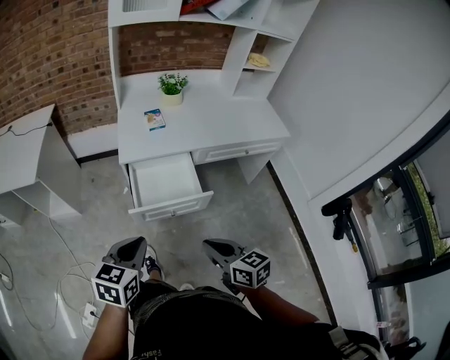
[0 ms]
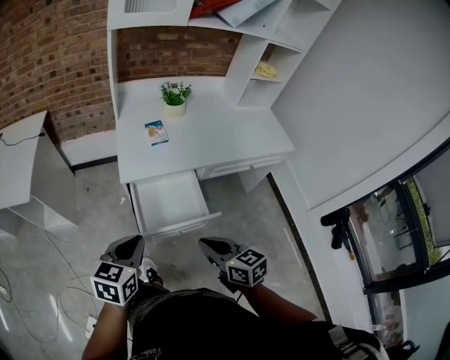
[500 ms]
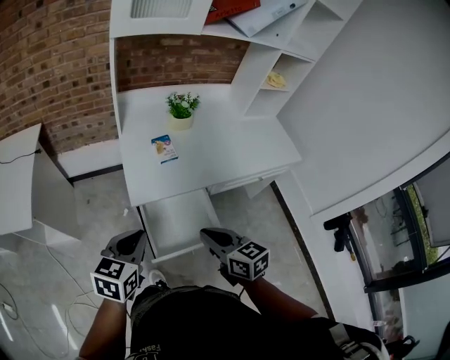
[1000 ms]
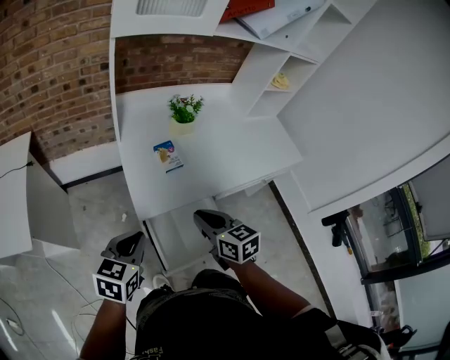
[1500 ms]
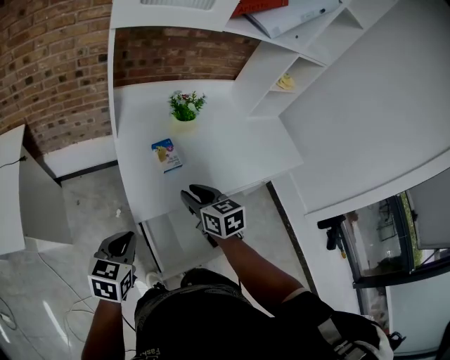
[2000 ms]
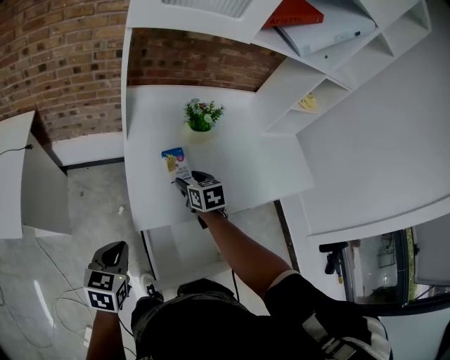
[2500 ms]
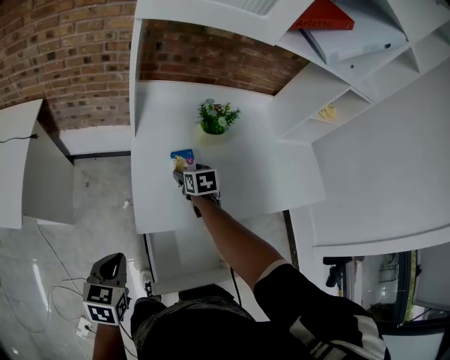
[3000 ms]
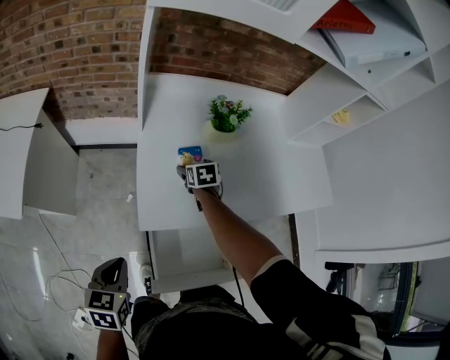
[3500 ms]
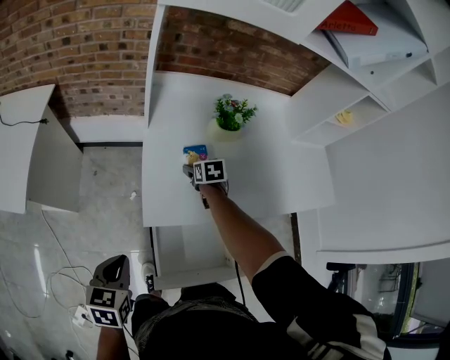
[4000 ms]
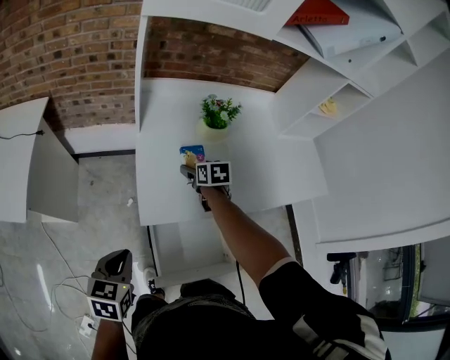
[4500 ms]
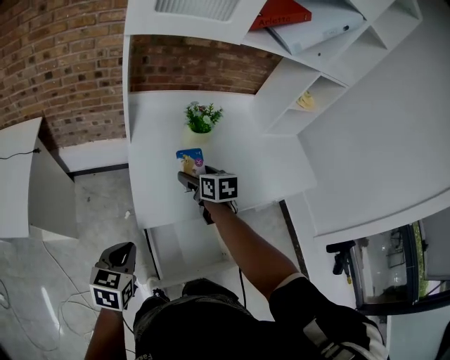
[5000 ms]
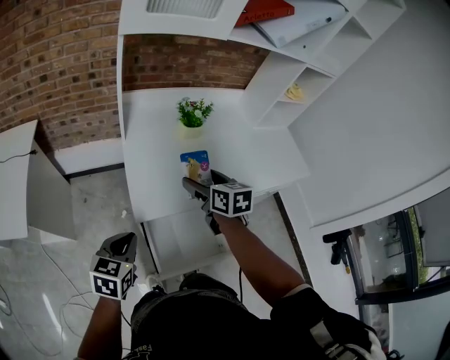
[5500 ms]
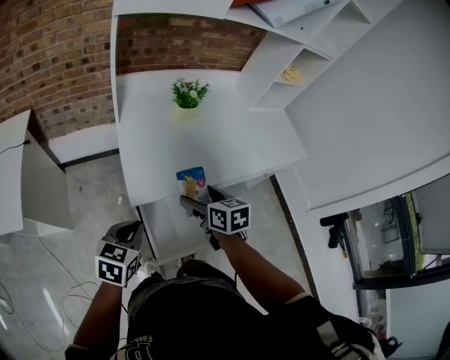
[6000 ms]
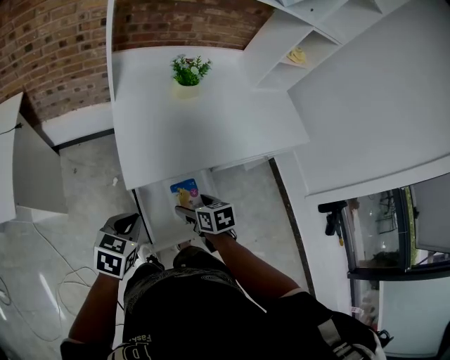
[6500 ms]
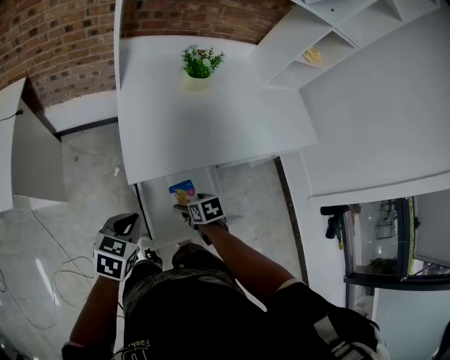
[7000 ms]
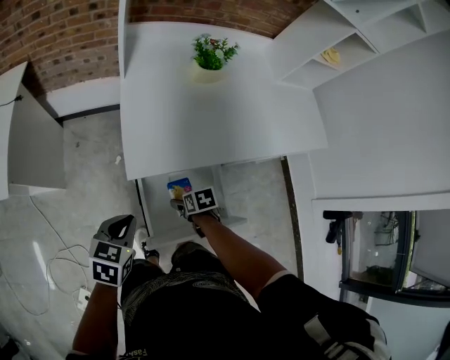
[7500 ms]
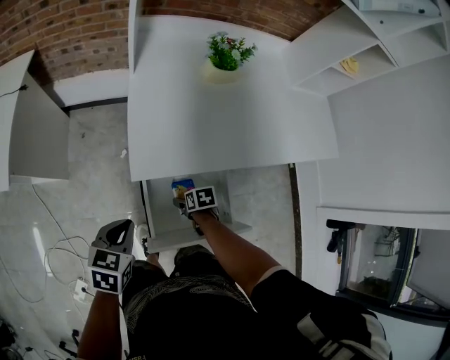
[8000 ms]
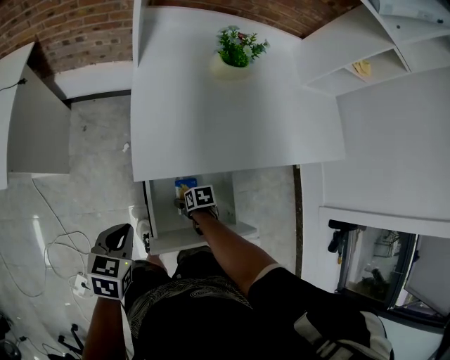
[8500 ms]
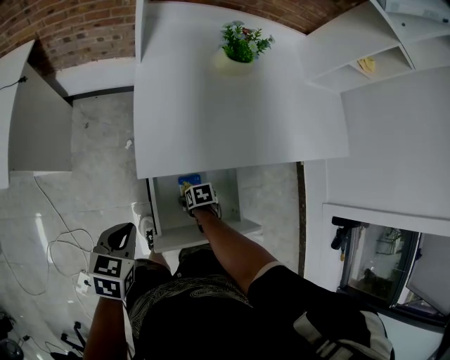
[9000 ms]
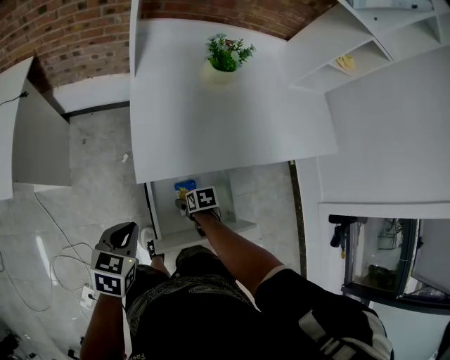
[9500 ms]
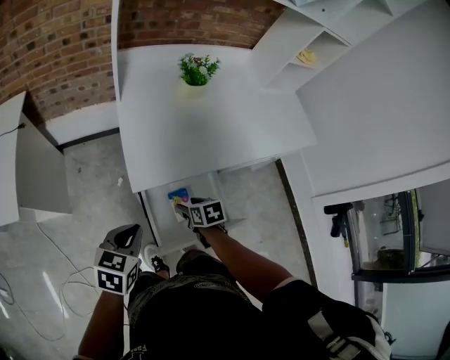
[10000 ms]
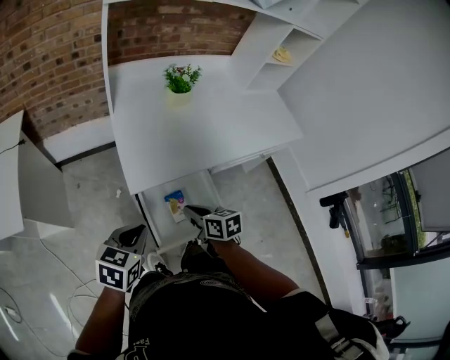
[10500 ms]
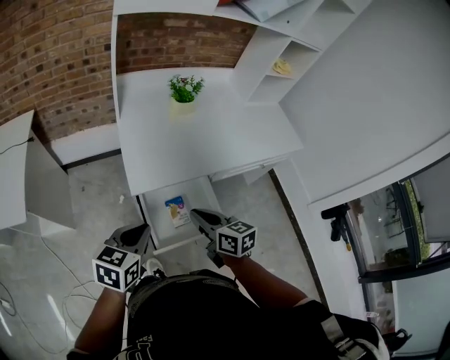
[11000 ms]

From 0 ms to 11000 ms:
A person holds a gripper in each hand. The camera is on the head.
From 0 ms to 2000 ms: The right gripper goes roughly 50 cm forward; the left gripper heads forward and to the left, covering approximately 35 cm.
From 2000 ms to 3500 ms: The left gripper shifts by roughly 5 cm, and changes its angle by roughly 20 degrees; the right gripper travels forward and downward by roughly 30 cm, rotates approximately 20 degrees, and opens up.
From 3500 ms to 5500 ms: The right gripper moves upward and backward, about 25 cm, and rotates about 30 degrees. The left gripper moves some 5 cm, and changes its angle by roughly 20 degrees.
From 5500 ms to 7500 ms: The right gripper moves downward and backward, approximately 35 cm, and angles its fingers downward, by approximately 40 degrees. Meanwhile the left gripper moves downward, approximately 10 cm.
From 7500 ms to 9000 ms: The right gripper shifts some 10 cm downward.
From 9000 ms to 11000 ms: The left gripper moves upward, roughly 15 cm, and turns by roughly 20 degrees. Meanwhile the right gripper goes about 40 cm upward, tips its fingers upward by roughly 50 degrees, and closes its fingers.

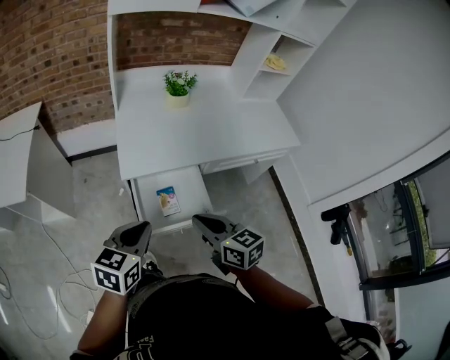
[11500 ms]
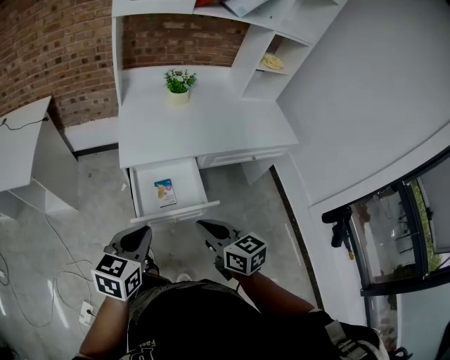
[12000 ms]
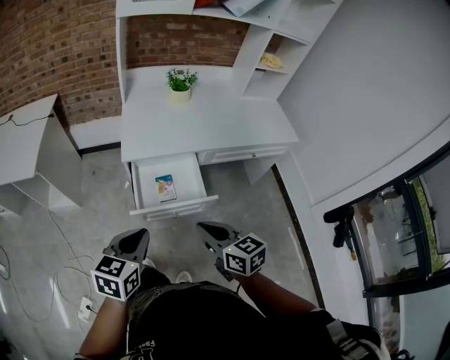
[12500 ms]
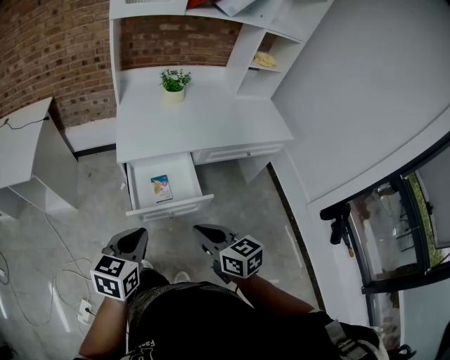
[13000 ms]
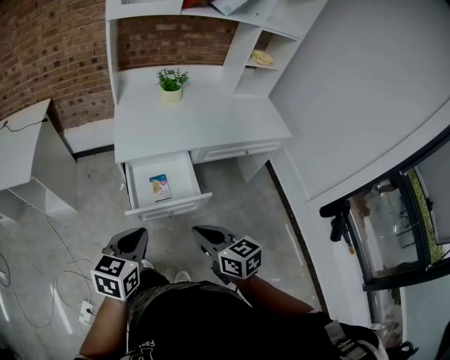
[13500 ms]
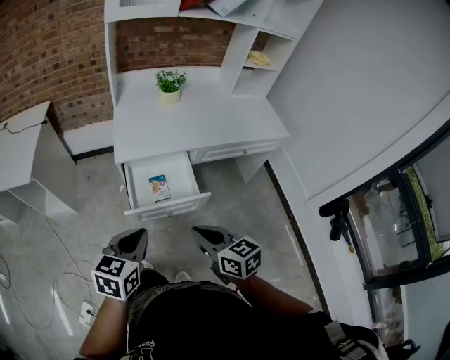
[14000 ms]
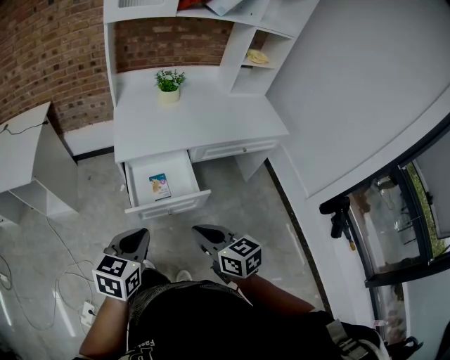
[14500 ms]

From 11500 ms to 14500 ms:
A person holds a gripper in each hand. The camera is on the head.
From 11500 ms to 13000 ms: Both grippers travel together backward, some 15 cm.
From 13000 ms to 14500 ms: There are only small adjustments of the grippers.

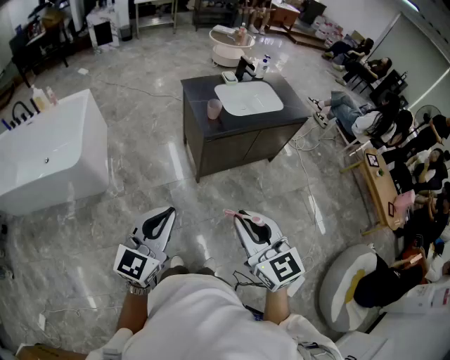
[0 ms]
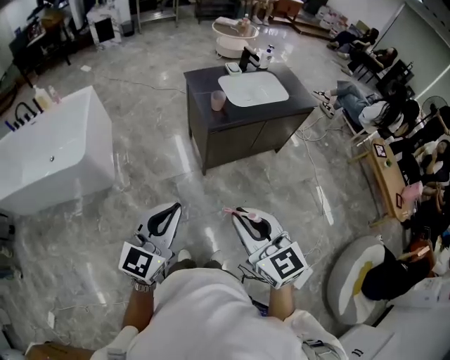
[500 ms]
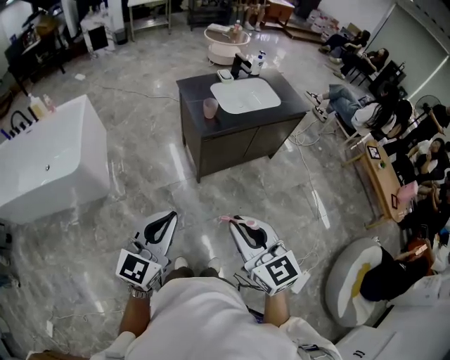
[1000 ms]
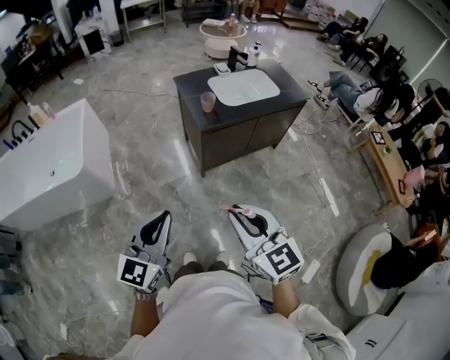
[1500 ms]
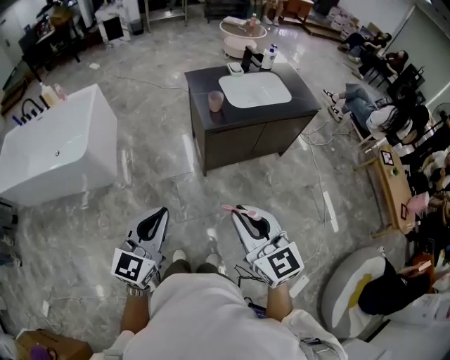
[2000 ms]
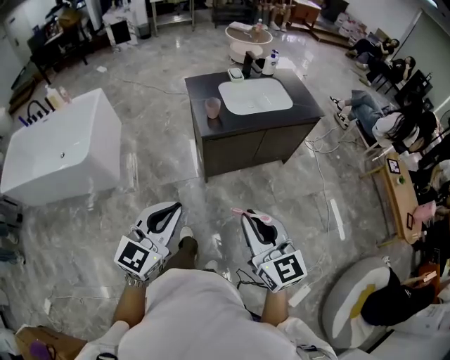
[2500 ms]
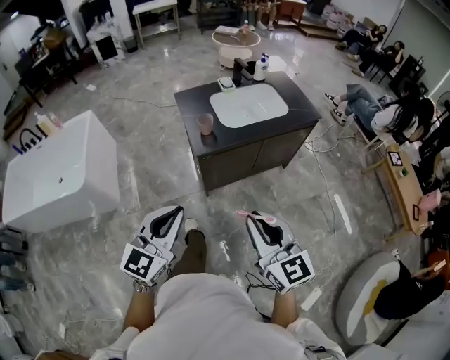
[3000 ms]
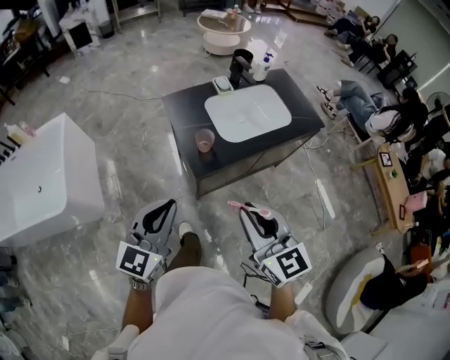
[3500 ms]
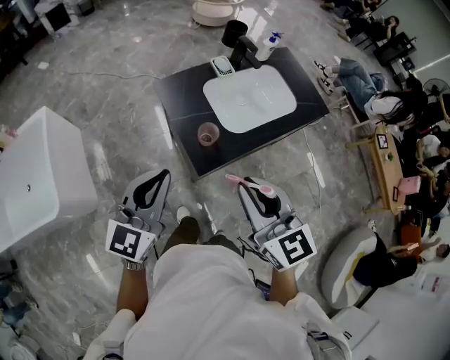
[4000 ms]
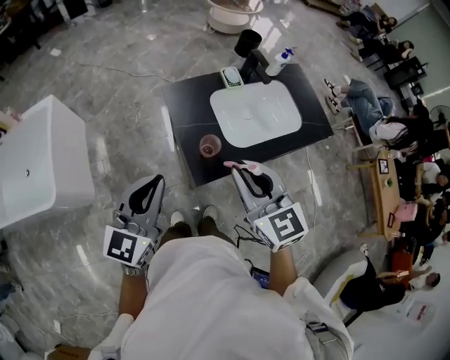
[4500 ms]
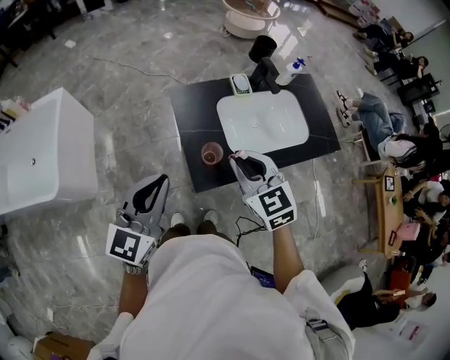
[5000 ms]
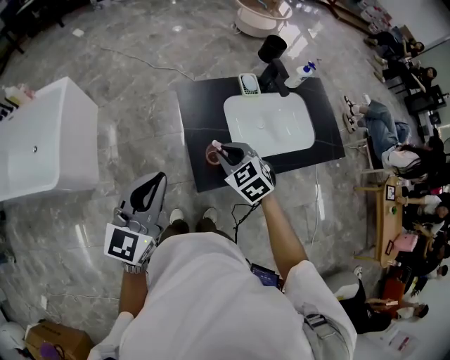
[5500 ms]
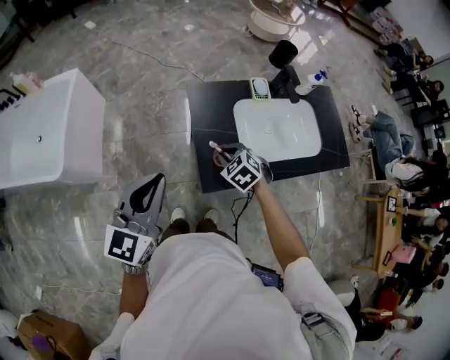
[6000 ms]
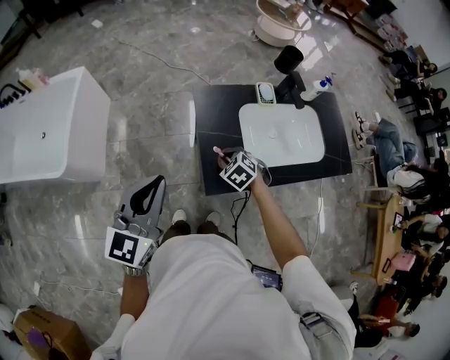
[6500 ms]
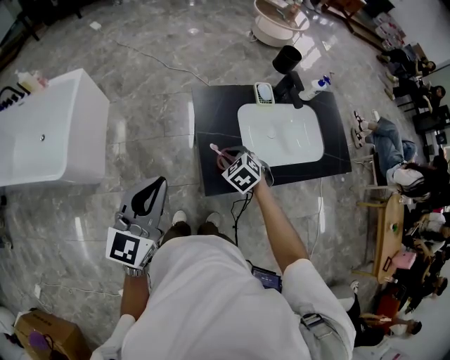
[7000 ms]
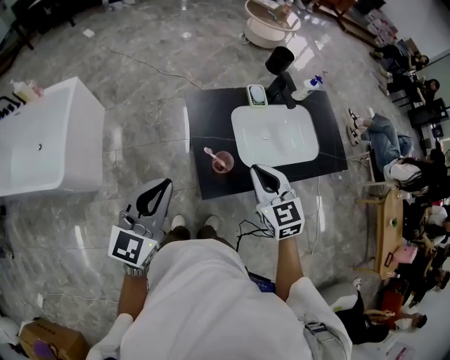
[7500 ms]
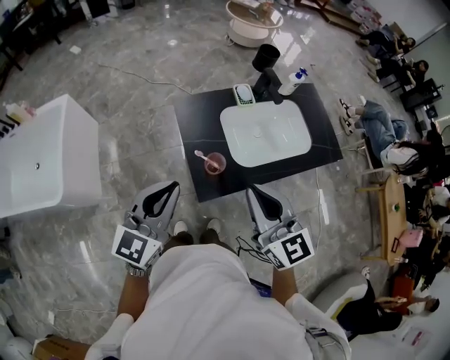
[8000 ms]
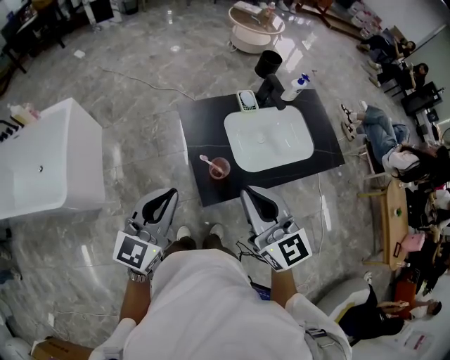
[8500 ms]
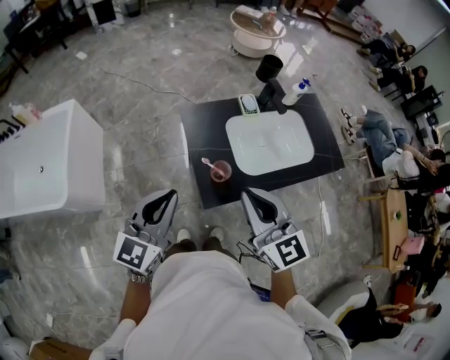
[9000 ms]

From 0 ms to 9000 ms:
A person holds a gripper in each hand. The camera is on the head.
From 0 ms to 2000 ms: The right gripper travels to the right by about 5 cm.
From 2000 ms to 4500 ms: The two grippers travel together, forward, about 50 cm.
From 4500 ms to 7000 ms: The right gripper goes about 30 cm downward and forward, and tilts its fingers approximately 40 degrees downward.
From 7000 ms to 9000 ms: The right gripper is displaced upward and backward by some 30 cm, and points its fingers approximately 50 degrees further upward.

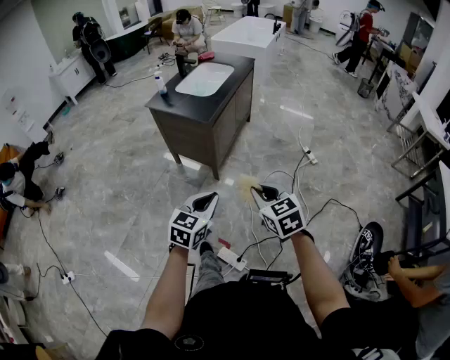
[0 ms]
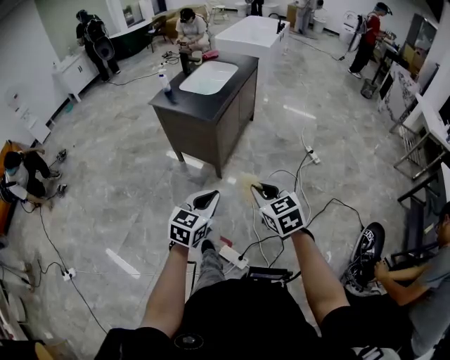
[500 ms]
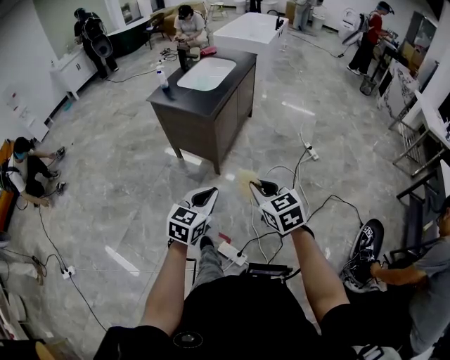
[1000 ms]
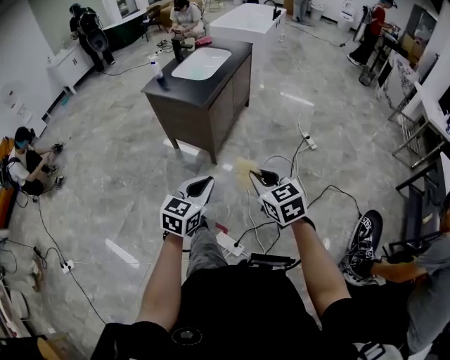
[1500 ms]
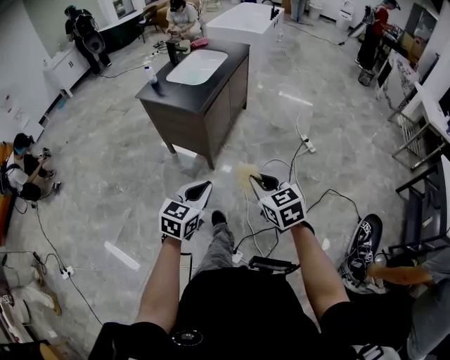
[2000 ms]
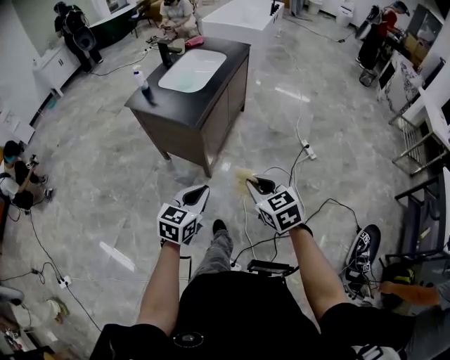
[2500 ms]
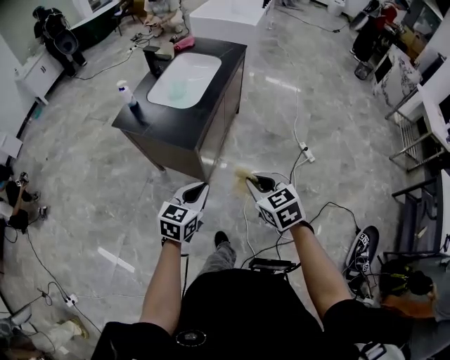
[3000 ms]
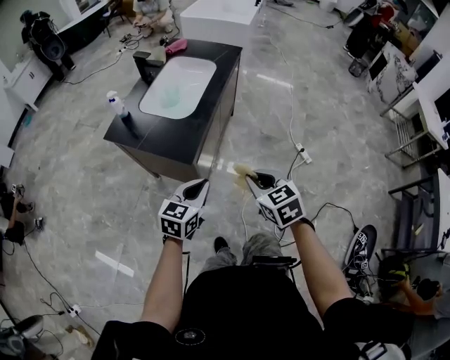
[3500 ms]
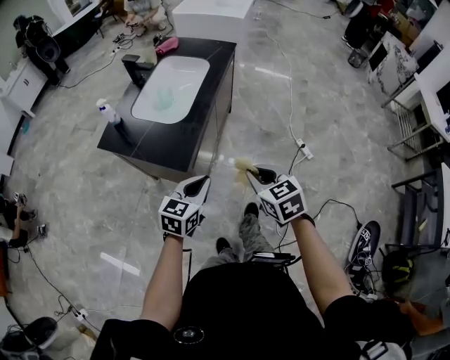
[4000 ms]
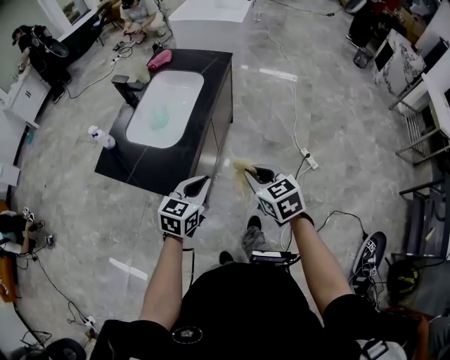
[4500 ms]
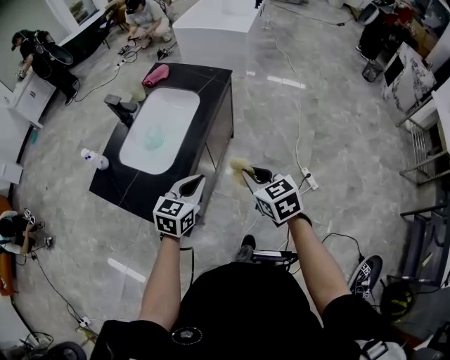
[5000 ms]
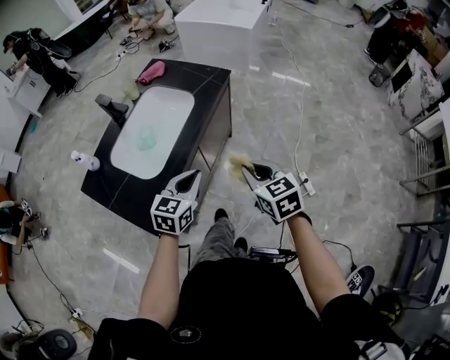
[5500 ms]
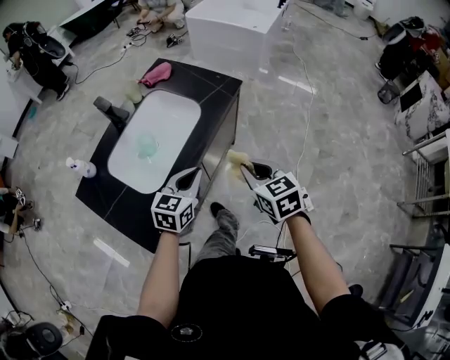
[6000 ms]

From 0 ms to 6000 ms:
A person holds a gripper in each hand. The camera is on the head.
From 0 ms to 2000 ms: The grippers move only a little.
From 2000 ms to 4000 ms: Both grippers move forward, approximately 40 cm.
From 4000 ms to 6000 ms: Both grippers travel together forward, some 35 cm.
